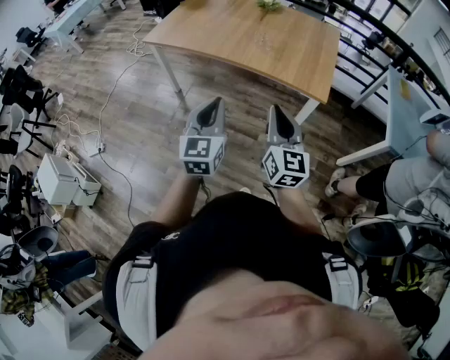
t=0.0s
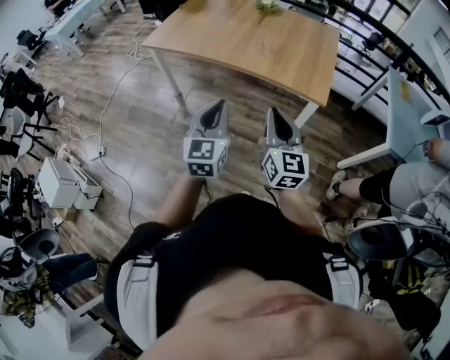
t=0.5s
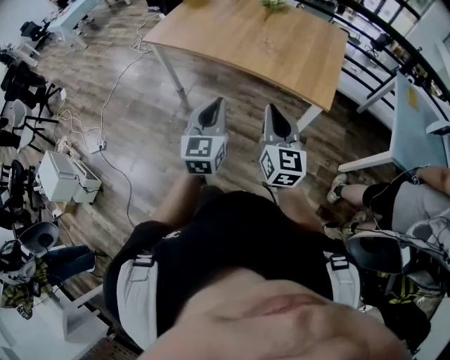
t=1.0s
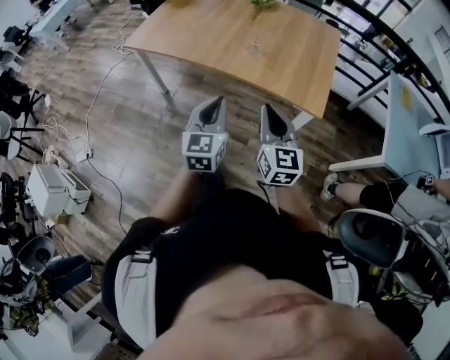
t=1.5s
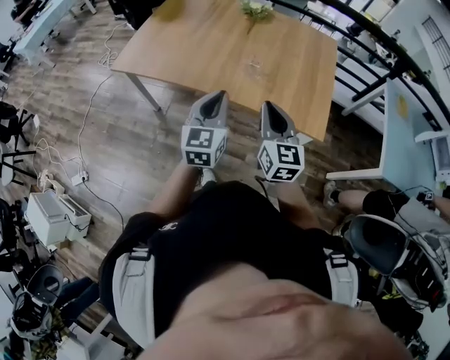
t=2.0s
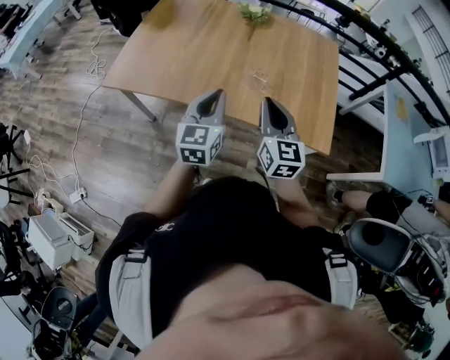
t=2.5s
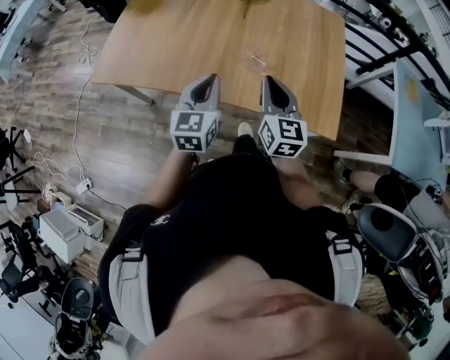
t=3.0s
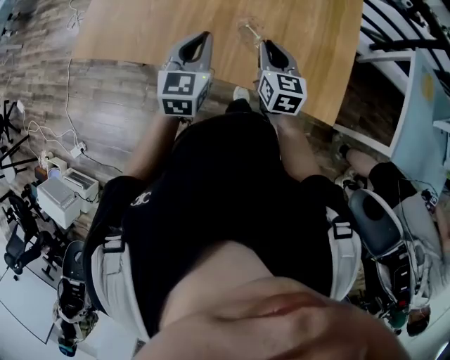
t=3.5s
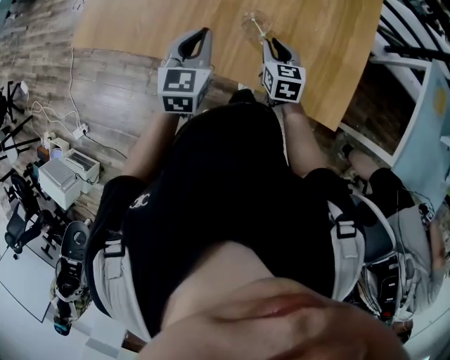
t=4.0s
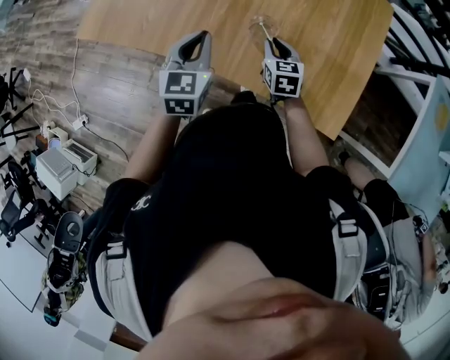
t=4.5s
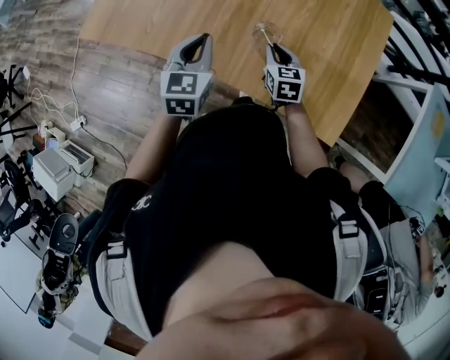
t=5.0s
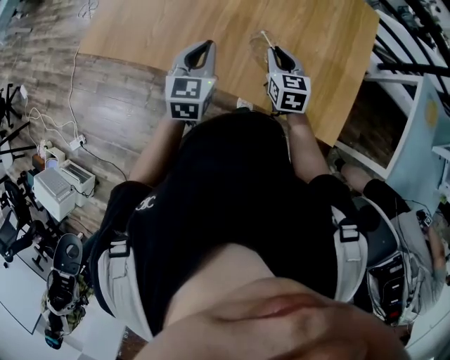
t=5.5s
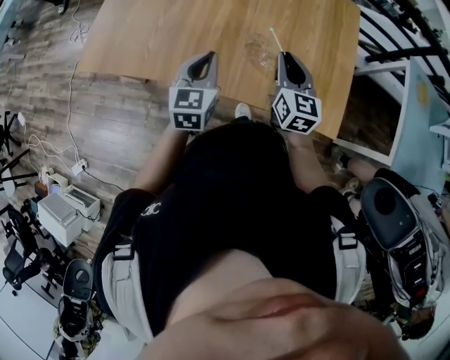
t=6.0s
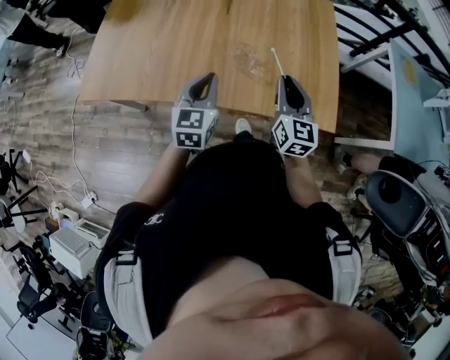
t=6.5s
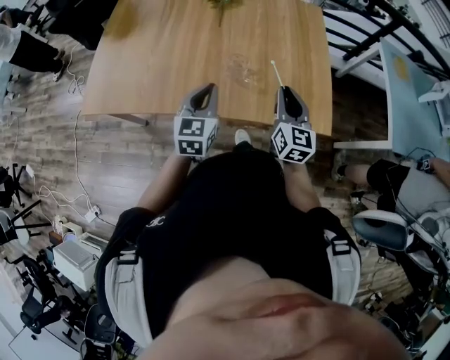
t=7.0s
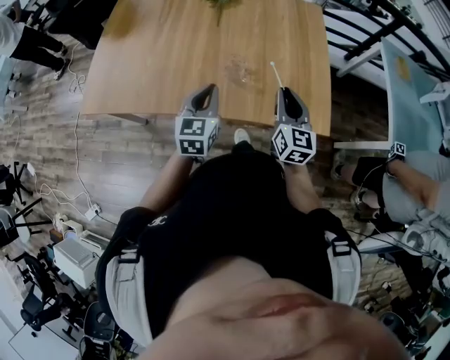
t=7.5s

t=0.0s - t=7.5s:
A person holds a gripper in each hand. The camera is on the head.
t=0.0s - t=2.0s: Both grippers travel together forward, about 30 cm.
t=2.0s - t=4.0s: Both grippers move forward and downward, roughly 35 cm. The right gripper swivels roughly 30 degrees.
t=4.0s - t=5.5s: The right gripper moves about 5 cm.
t=5.5s - t=7.5s: The left gripper is displaced to the right and backward by about 10 cm; the right gripper shifts approximately 20 cm backward, to the right and upward, and rotates some 30 degrees.

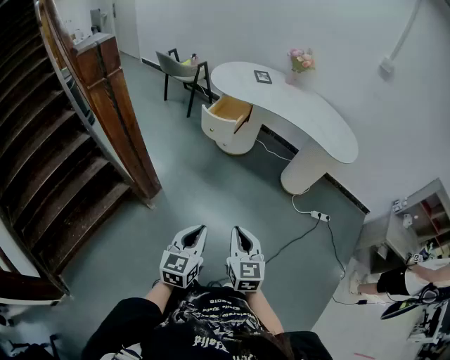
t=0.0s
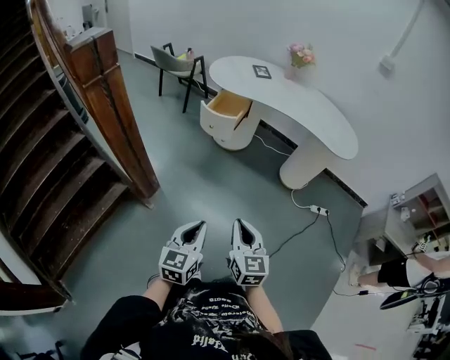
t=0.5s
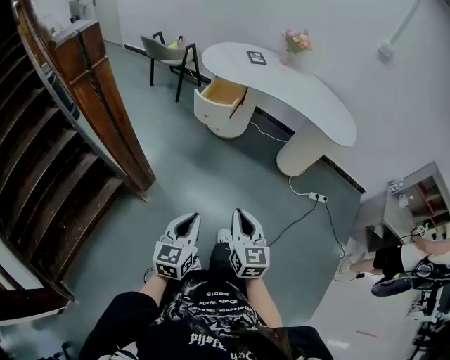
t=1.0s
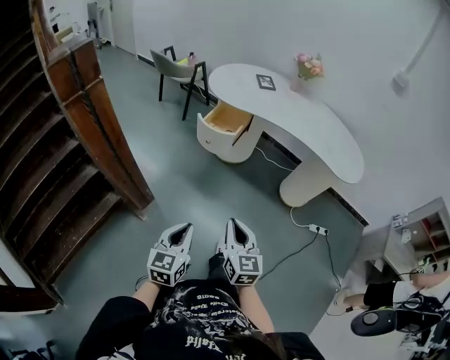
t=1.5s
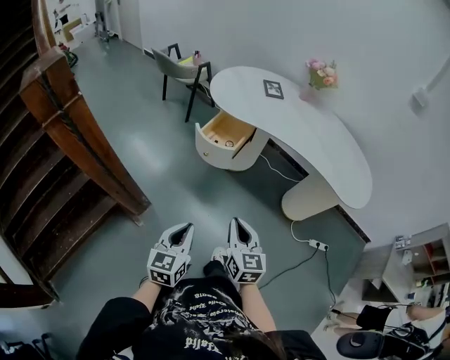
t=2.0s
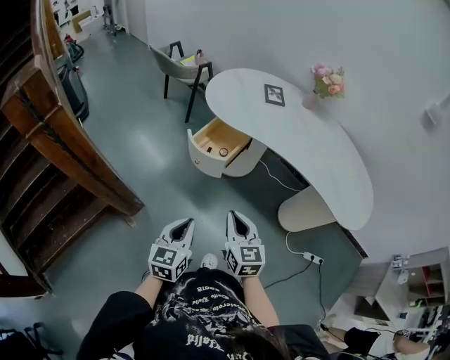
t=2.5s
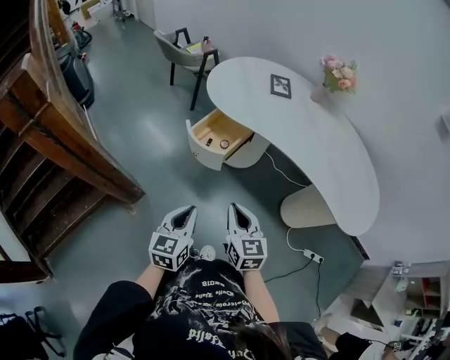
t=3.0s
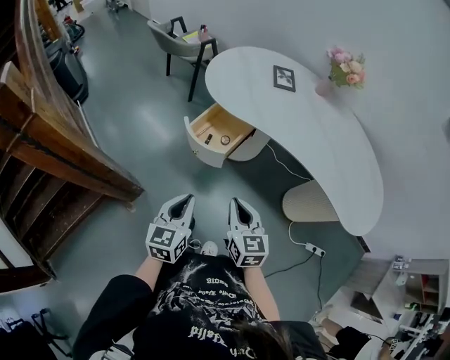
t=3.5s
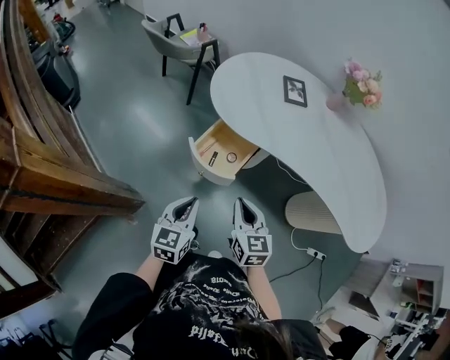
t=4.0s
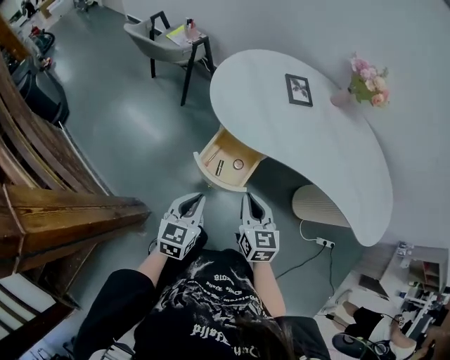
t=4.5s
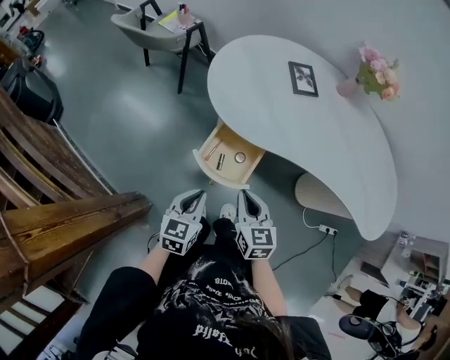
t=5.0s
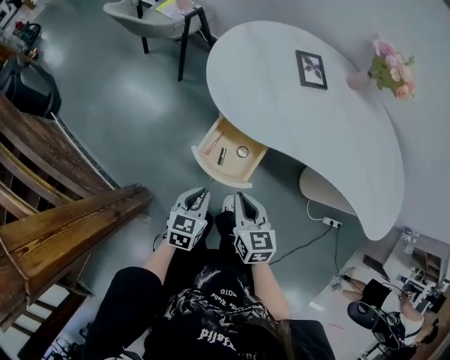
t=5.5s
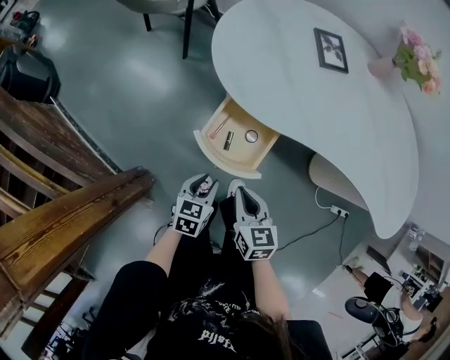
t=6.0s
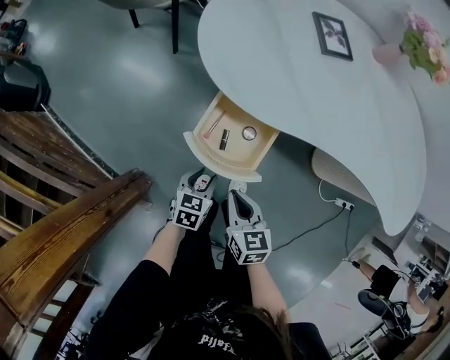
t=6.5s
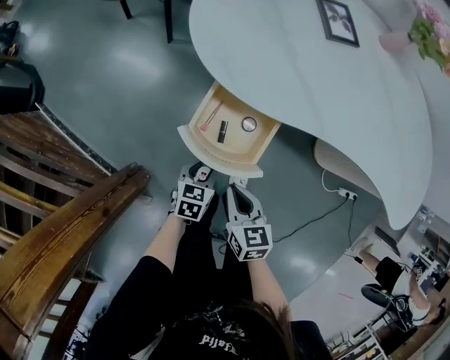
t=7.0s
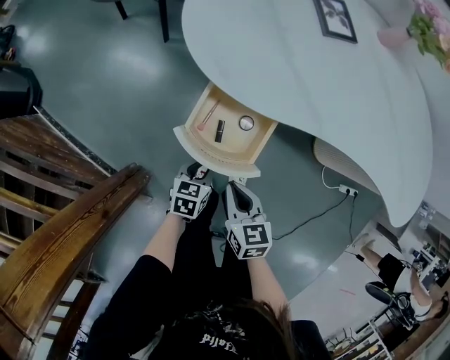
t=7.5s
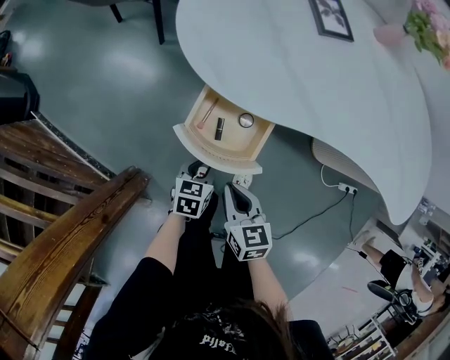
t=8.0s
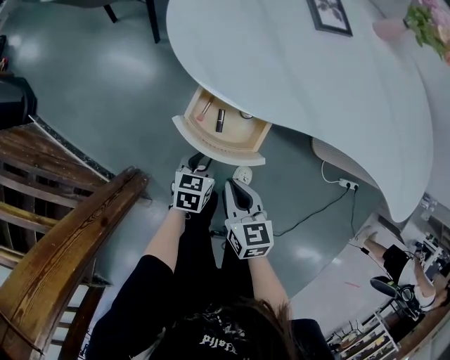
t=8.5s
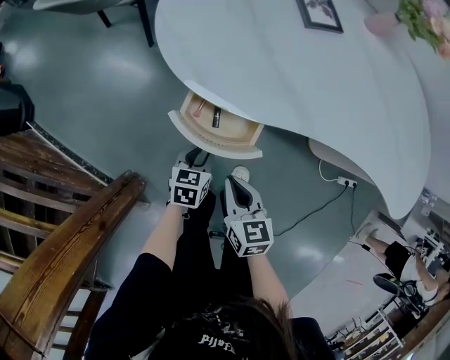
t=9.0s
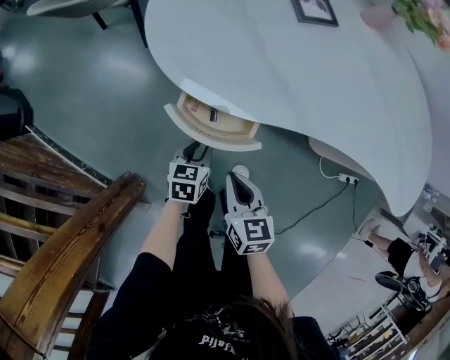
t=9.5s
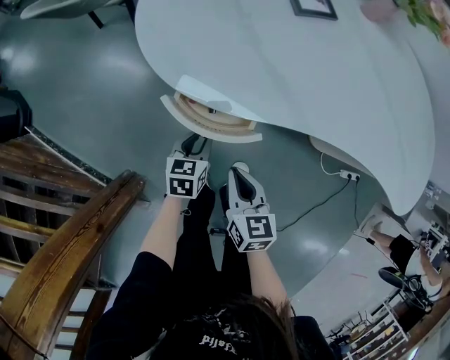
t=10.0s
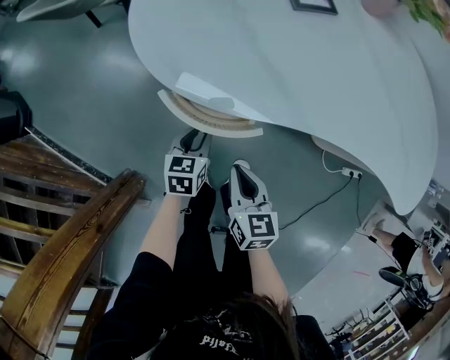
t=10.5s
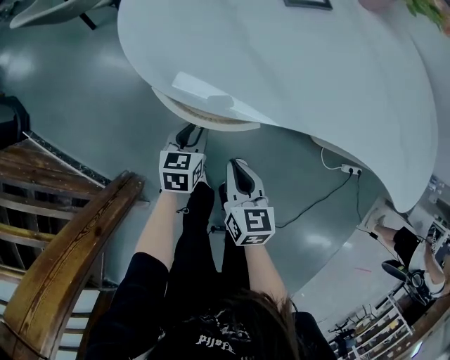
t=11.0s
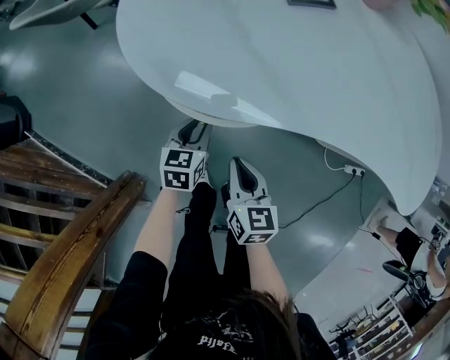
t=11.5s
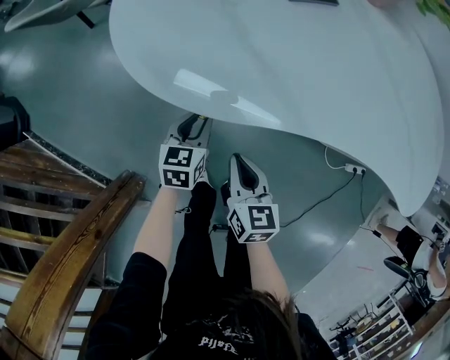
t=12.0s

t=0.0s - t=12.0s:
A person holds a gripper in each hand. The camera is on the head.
t=0.0s - t=2.0s: Both grippers move forward, roughly 30 cm.
t=2.0s - t=4.0s: Both grippers travel together forward, some 35 cm.
t=4.0s - t=6.0s: The right gripper moves downward, to the left and forward, approximately 15 cm, while the left gripper goes about 25 cm downward and forward, turns by approximately 20 degrees, and opens.
t=6.0s - t=8.0s: Both grippers travel together downward, approximately 10 cm.
t=8.0s - t=10.0s: The right gripper travels to the right and forward by some 10 cm; the left gripper heads forward, covering some 10 cm.
t=10.0s - t=12.0s: The left gripper goes approximately 5 cm forward. The right gripper moves roughly 5 cm.

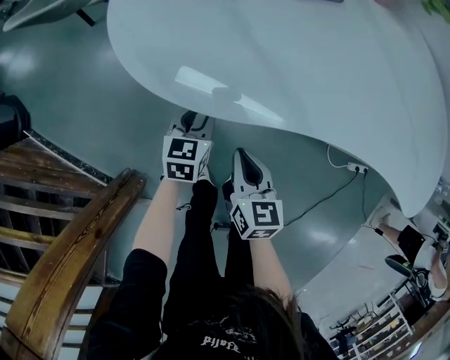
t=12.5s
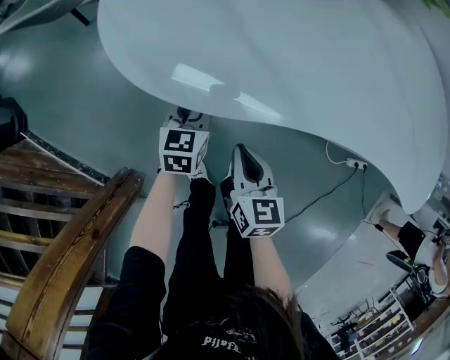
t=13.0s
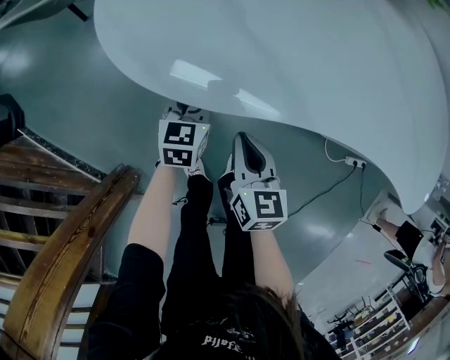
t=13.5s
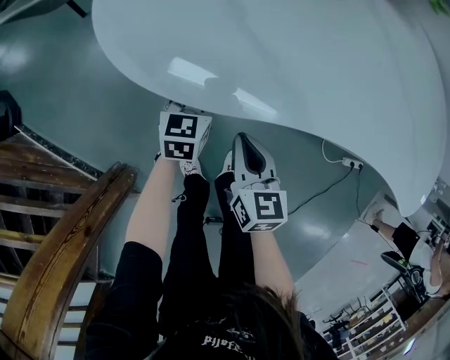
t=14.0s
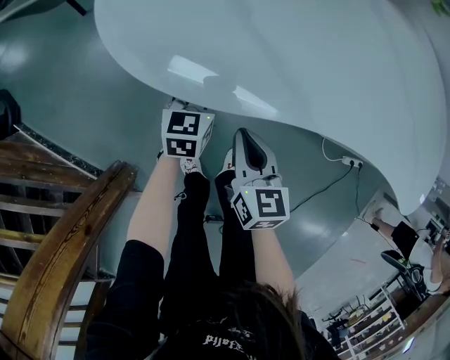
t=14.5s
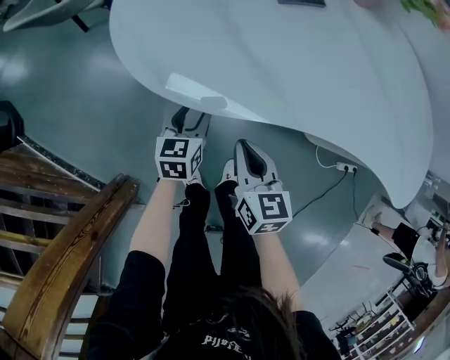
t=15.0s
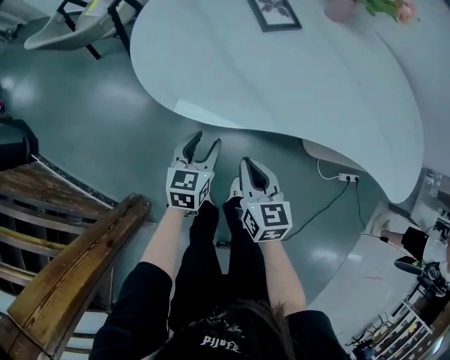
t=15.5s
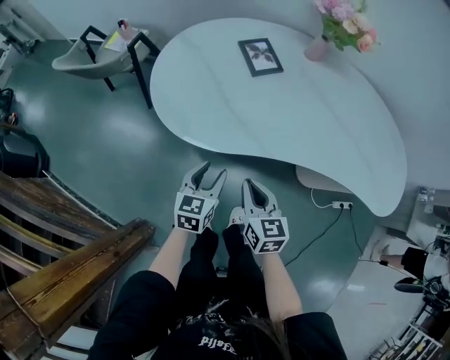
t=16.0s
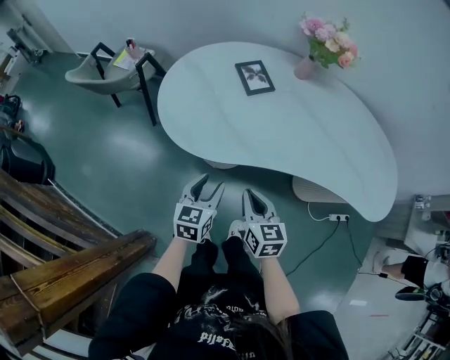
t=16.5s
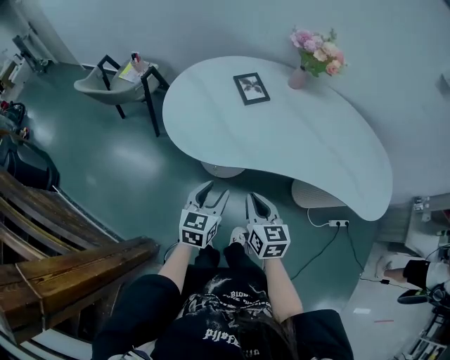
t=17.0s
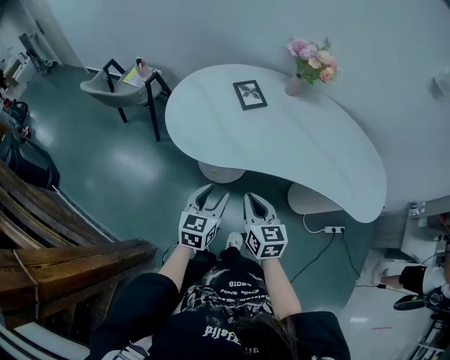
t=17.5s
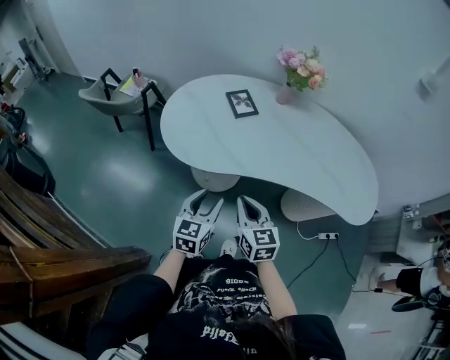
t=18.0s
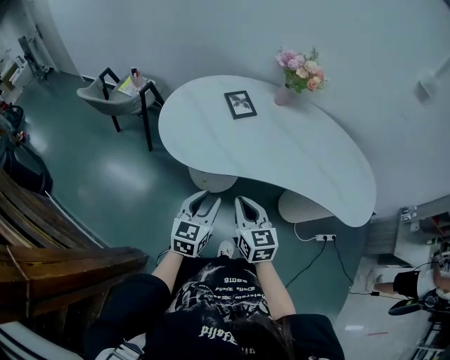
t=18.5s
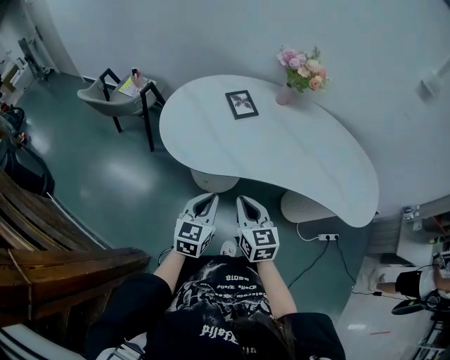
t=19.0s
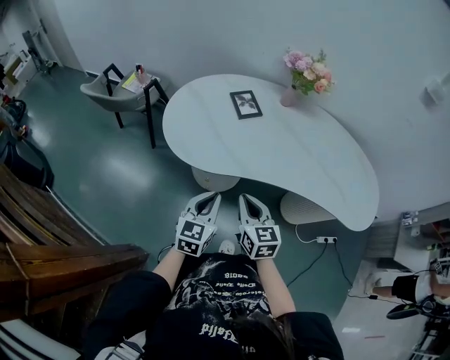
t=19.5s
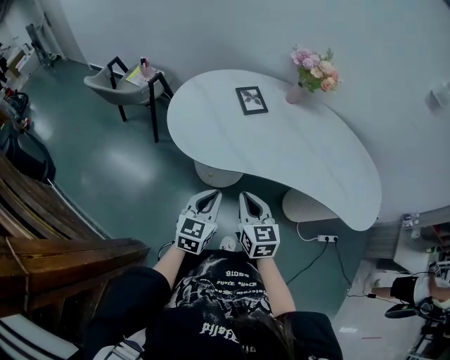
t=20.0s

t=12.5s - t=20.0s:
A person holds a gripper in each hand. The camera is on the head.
t=12.5s - t=14.5s: The left gripper changes place by roughly 5 cm.
t=14.5s - t=16.5s: The right gripper travels upward by about 20 cm; the left gripper heads upward and backward, covering about 30 cm.
t=16.5s - t=18.0s: The right gripper is displaced upward by approximately 10 cm. The left gripper is displaced upward and backward by about 10 cm.
t=18.0s - t=20.0s: The left gripper closes up.
